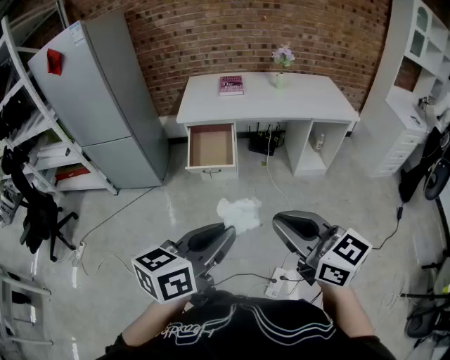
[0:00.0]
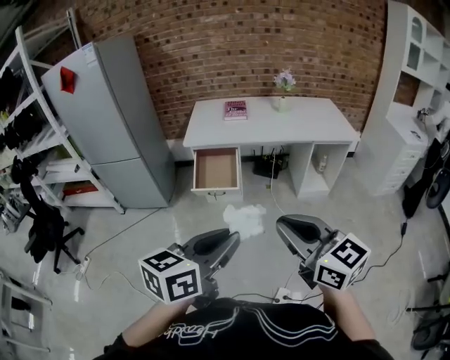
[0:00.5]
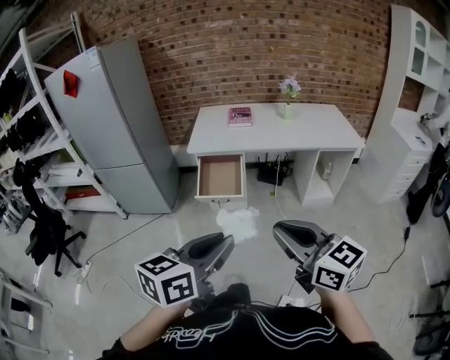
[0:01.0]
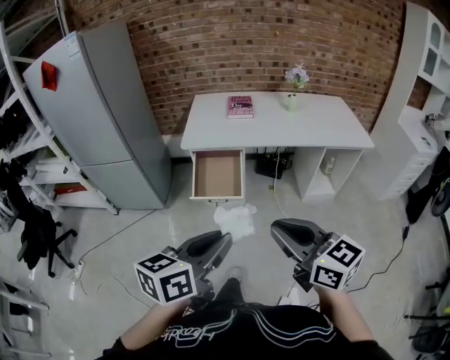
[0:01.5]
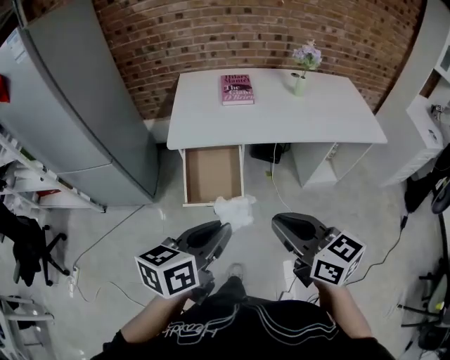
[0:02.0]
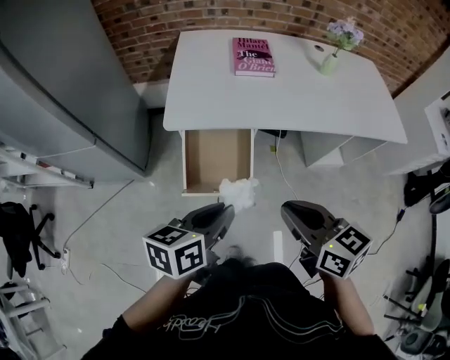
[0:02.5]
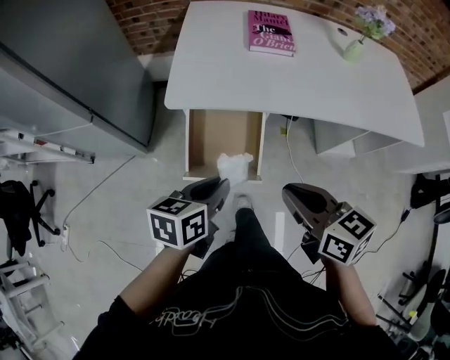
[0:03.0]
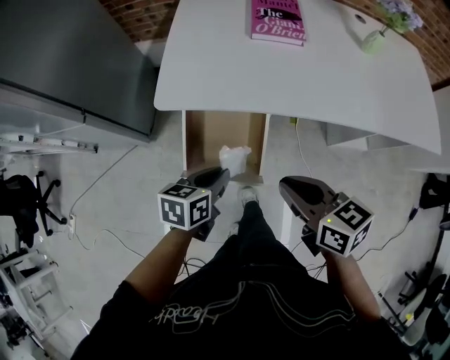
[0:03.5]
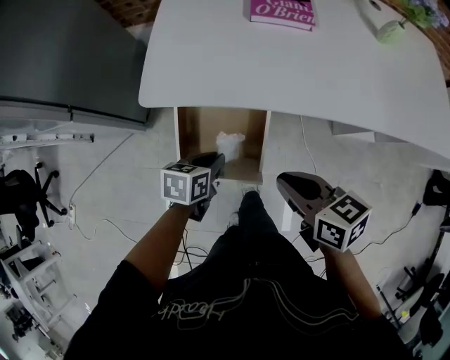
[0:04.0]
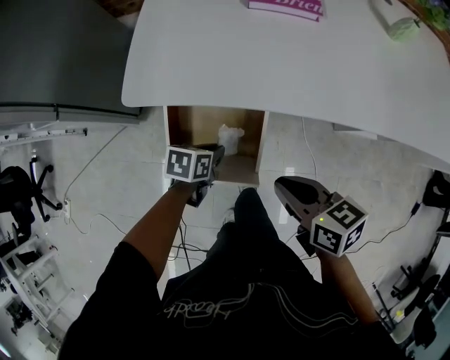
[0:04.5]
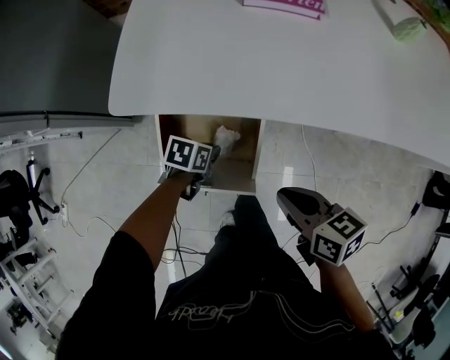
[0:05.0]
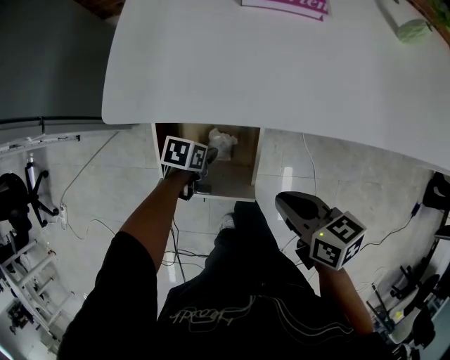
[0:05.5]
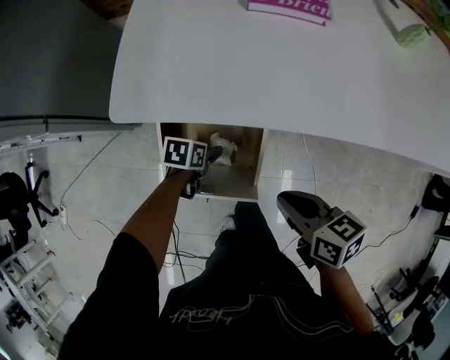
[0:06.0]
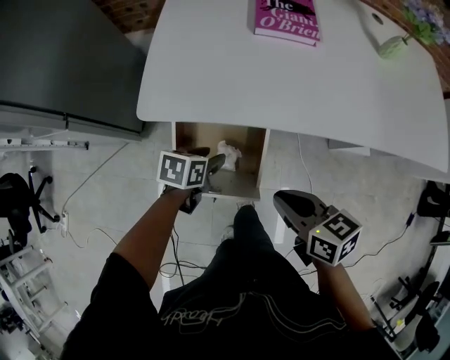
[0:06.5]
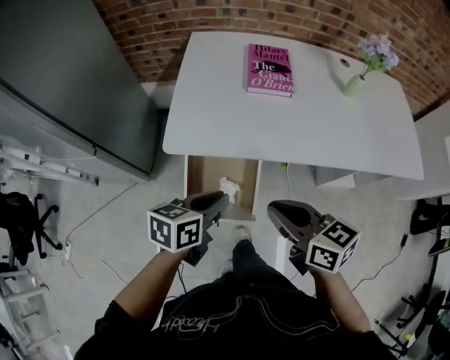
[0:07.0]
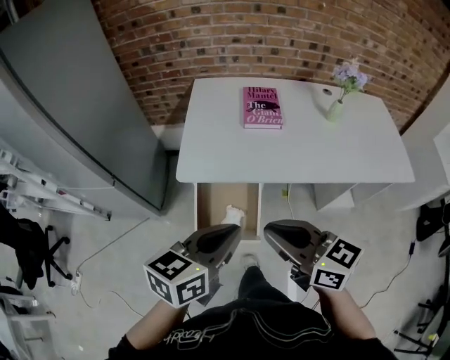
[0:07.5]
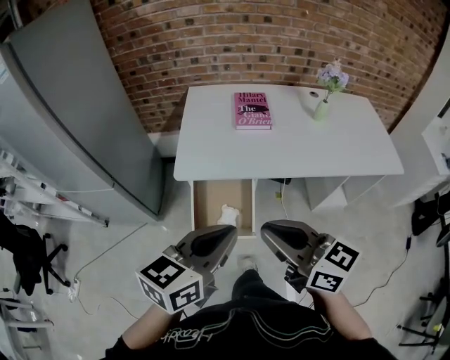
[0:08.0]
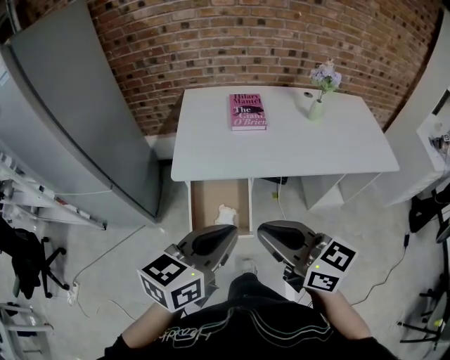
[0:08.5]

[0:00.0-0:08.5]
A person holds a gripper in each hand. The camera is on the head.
0:00.0 to 0:02.0: The grippers both shift forward by some 40 cm.
0:02.0 to 0:04.0: The left gripper goes approximately 50 cm downward and forward, and tips its fingers downward by some 30 degrees. Meanwhile the right gripper shifts about 40 cm forward and downward, and turns by approximately 30 degrees.
0:04.0 to 0:06.5: The right gripper reaches some 10 cm downward, then returns, while the left gripper reaches about 15 cm downward, then returns, and opens up.
0:06.5 to 0:08.5: Both grippers move upward and backward, about 40 cm. The right gripper turns by approximately 30 degrees, while the left gripper tips its fingers upward by approximately 40 degrees, and closes.

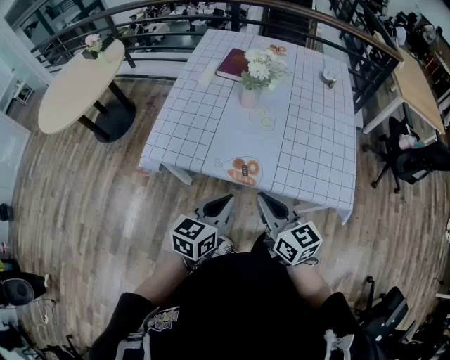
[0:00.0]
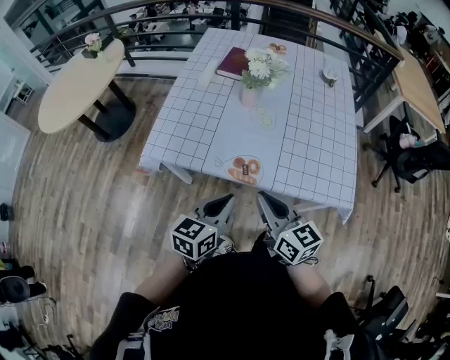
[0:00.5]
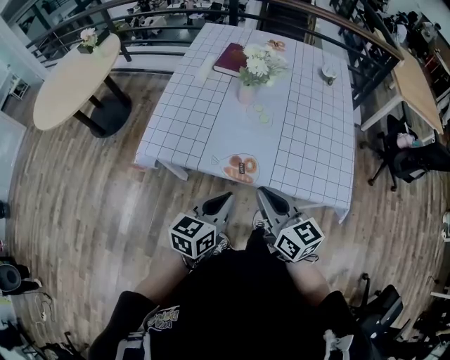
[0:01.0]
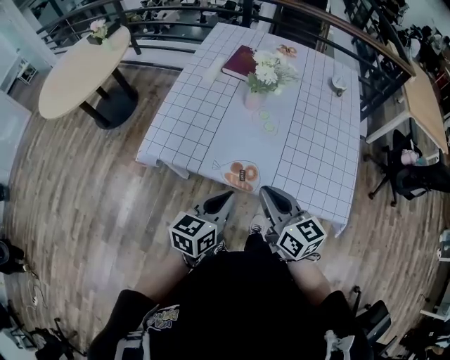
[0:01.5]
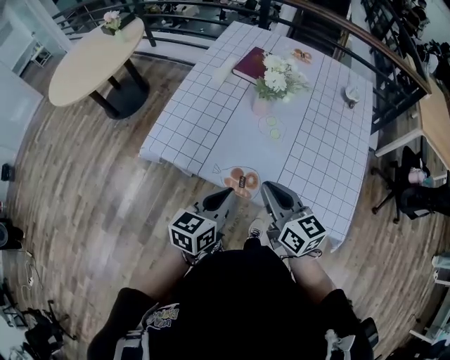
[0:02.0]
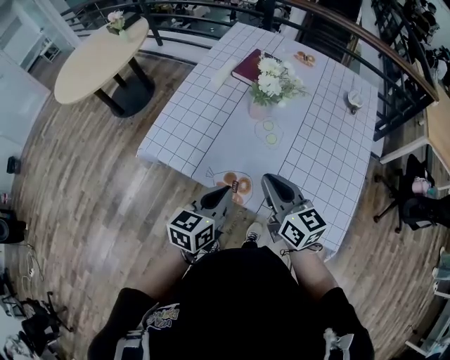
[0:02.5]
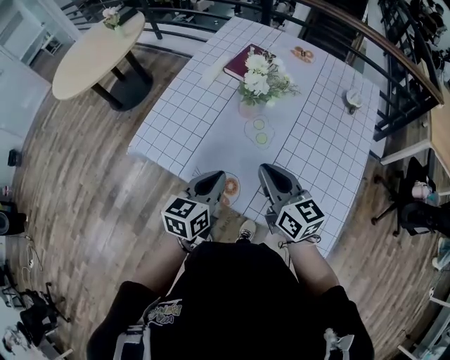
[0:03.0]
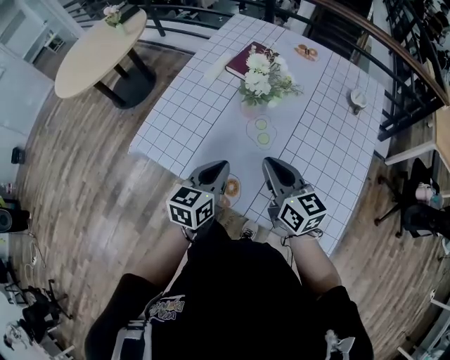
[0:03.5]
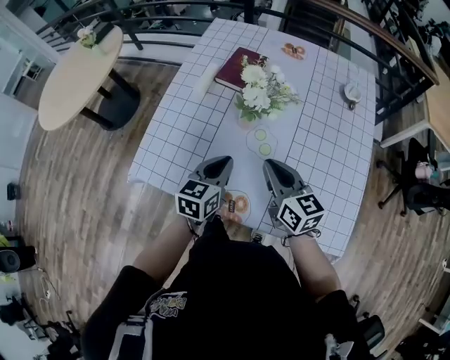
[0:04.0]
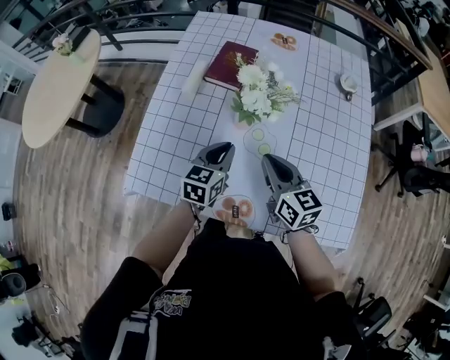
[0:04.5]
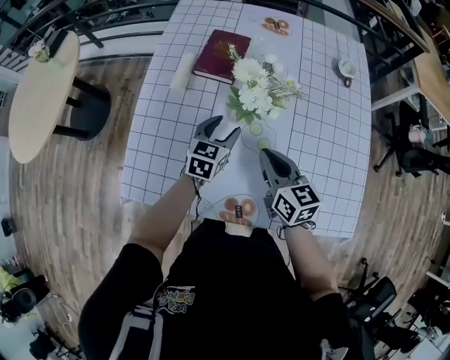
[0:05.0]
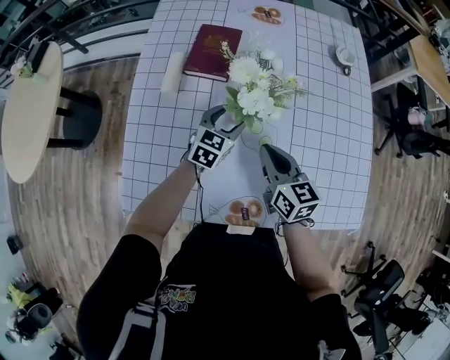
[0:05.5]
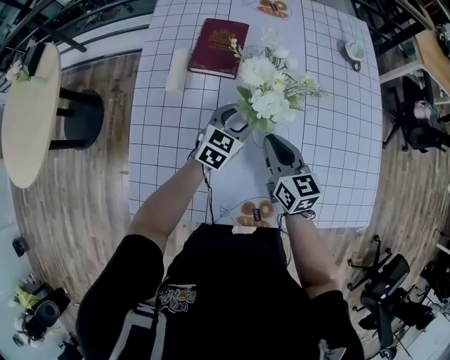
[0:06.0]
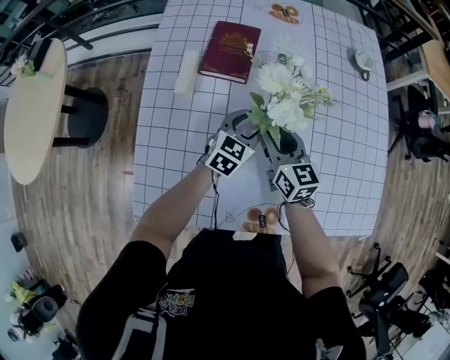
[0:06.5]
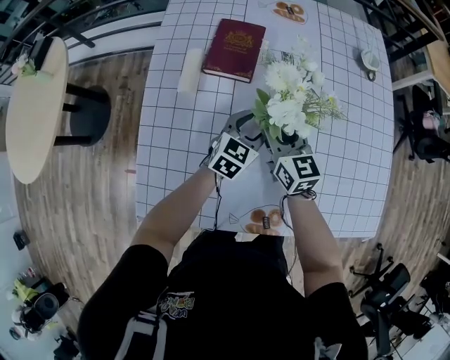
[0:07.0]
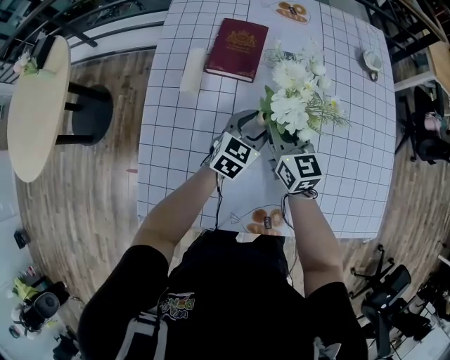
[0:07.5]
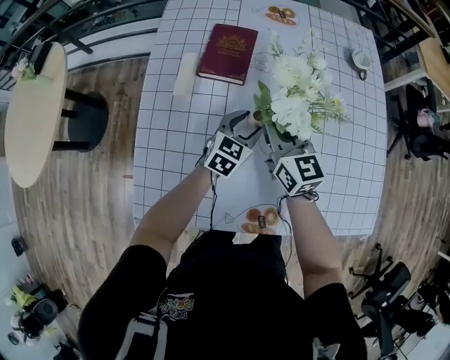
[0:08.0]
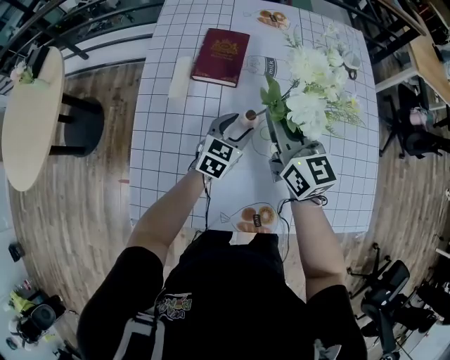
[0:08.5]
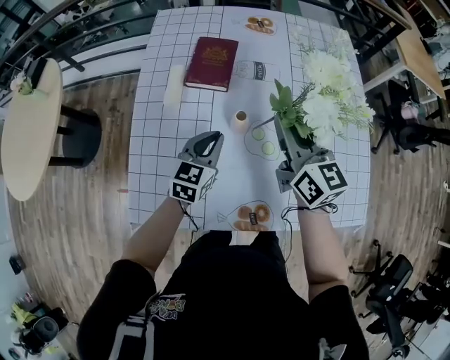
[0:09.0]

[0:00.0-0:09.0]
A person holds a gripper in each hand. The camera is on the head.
0:00.0 to 0:02.0: Both grippers travel together forward, roughly 10 cm.
0:02.0 to 0:04.5: Both grippers travel together forward, about 25 cm.
0:04.5 to 0:07.0: The right gripper is displaced forward, to the left and downward by roughly 20 cm, and opens up, while the left gripper is displaced forward and downward by approximately 15 cm, changes its angle by roughly 30 degrees, and opens up.
0:07.0 to 0:09.0: The left gripper goes roughly 10 cm upward, backward and to the left, and closes its fingers; the right gripper moves upward and to the right, roughly 15 cm, and closes.

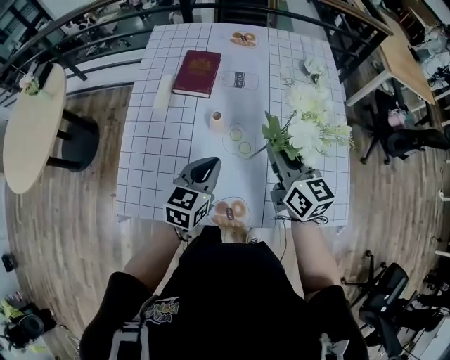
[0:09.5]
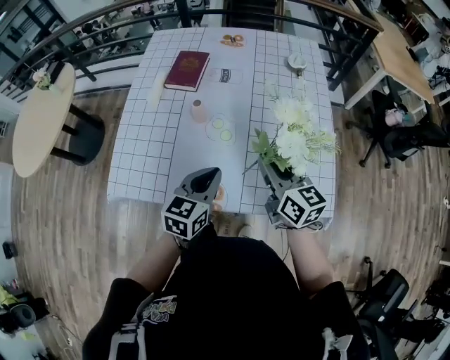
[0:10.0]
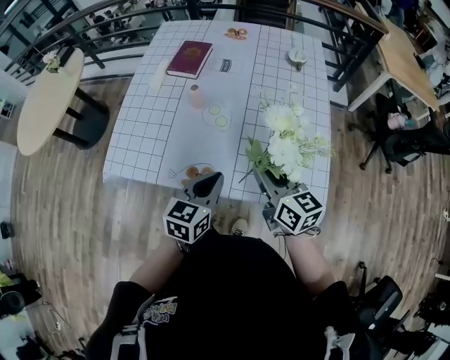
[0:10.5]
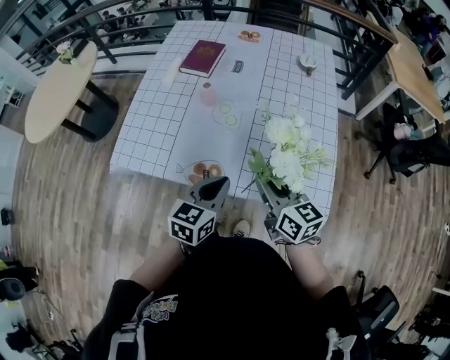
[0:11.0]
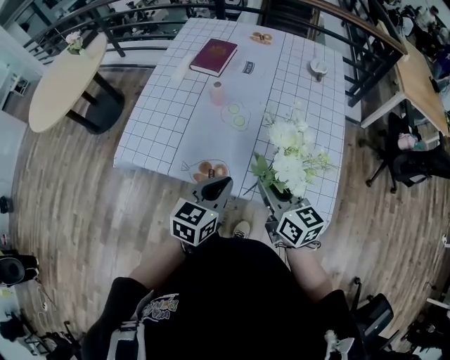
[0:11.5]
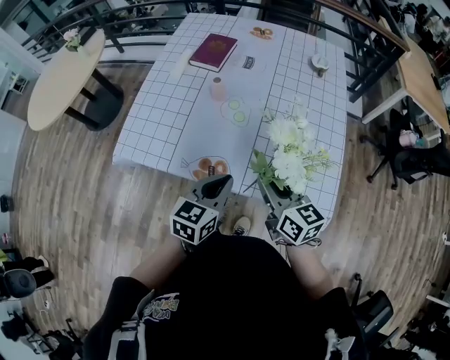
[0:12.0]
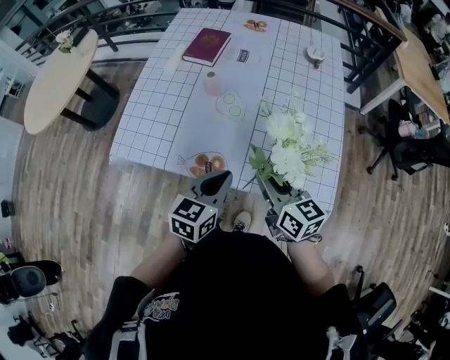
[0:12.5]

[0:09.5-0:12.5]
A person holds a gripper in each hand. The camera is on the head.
0:09.5 to 0:11.0: The left gripper is displaced backward and to the right by about 25 cm. Meanwhile the right gripper shifts approximately 20 cm backward.
0:11.0 to 0:12.5: The grippers move only a little.

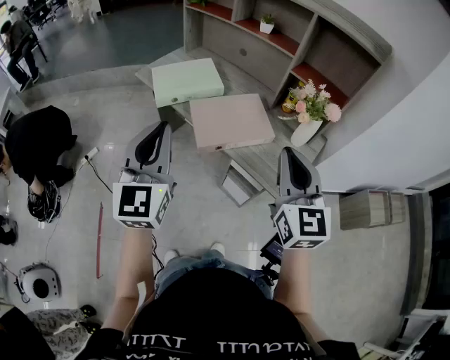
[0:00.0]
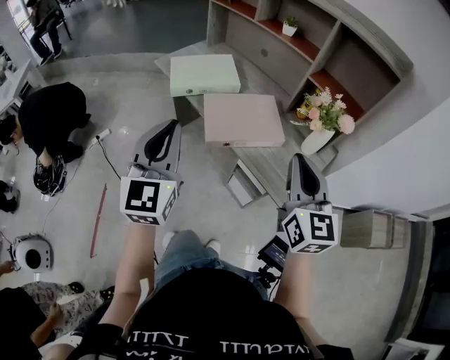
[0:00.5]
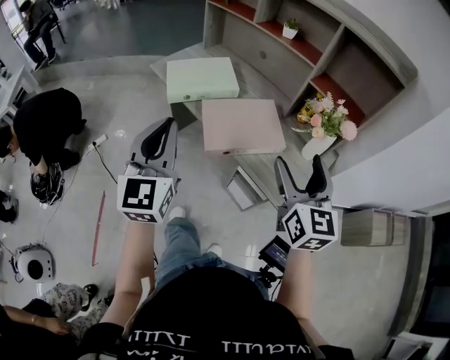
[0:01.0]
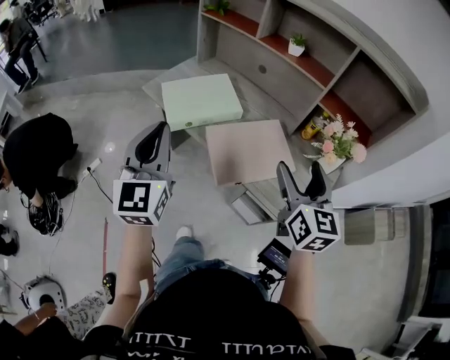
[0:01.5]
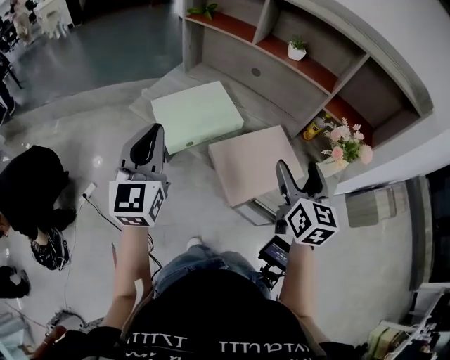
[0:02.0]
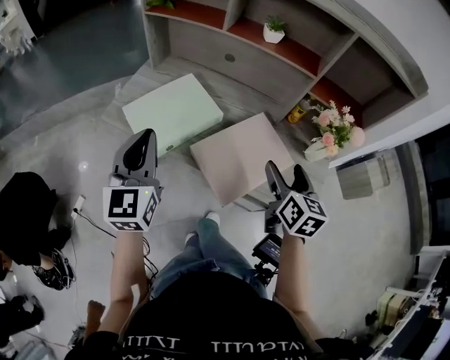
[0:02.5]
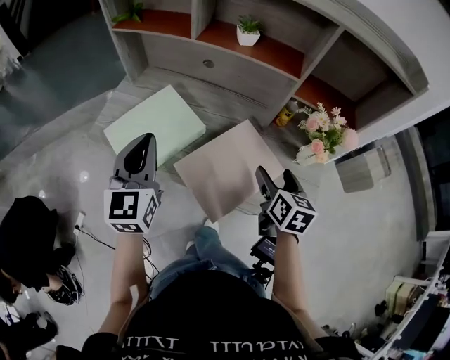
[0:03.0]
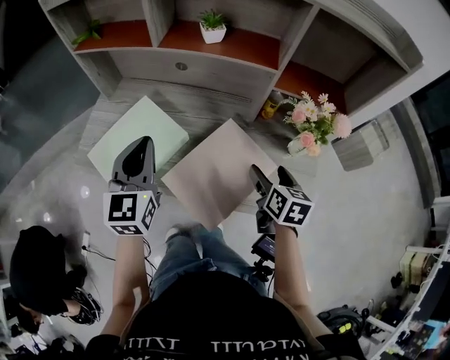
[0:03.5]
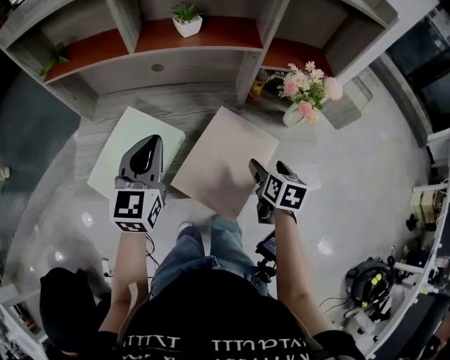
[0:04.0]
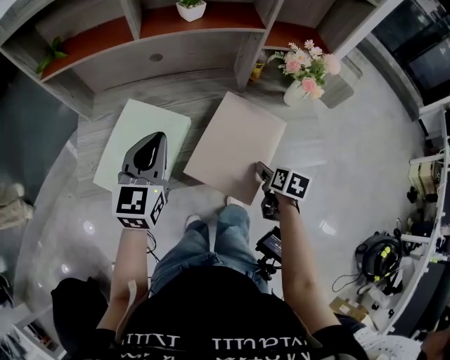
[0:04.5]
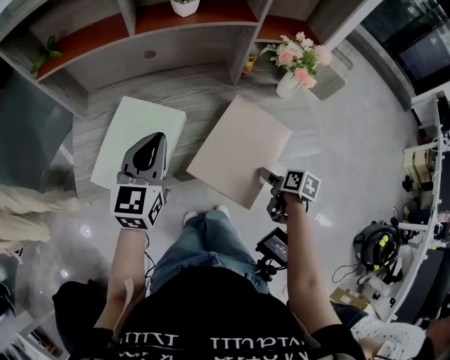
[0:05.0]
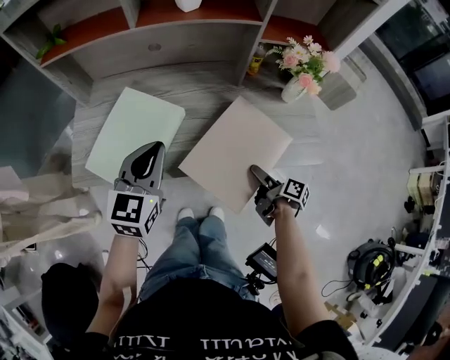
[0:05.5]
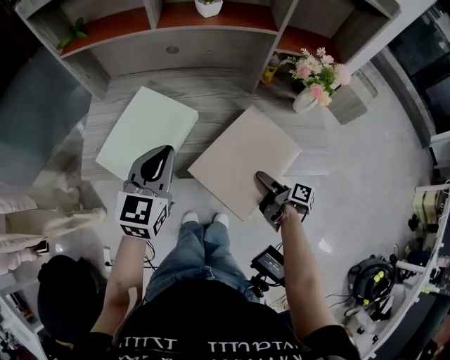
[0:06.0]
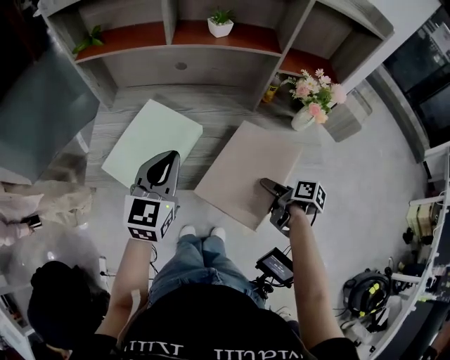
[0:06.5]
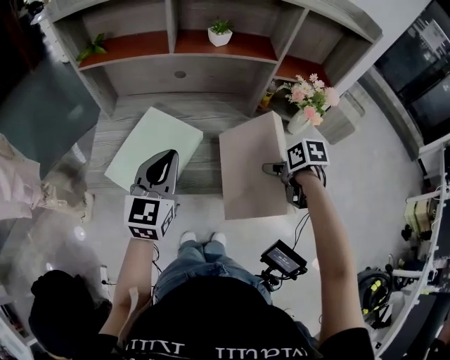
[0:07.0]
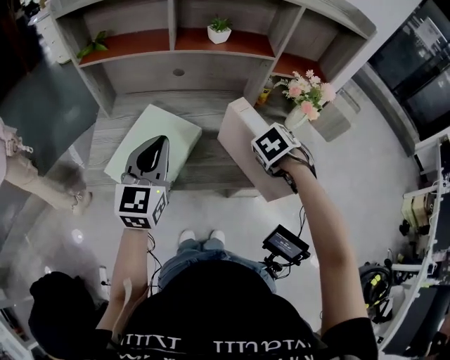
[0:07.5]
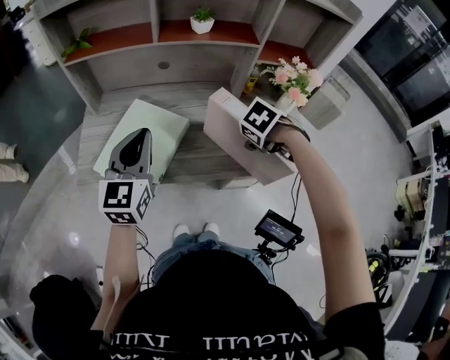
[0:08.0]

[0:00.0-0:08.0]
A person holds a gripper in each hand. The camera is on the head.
0:00.0 to 0:02.0: The right gripper moves forward, some 20 cm, swivels some 30 degrees, and opens. The left gripper is displaced forward and to the left by approximately 30 cm.
0:02.0 to 0:04.0: The right gripper is displaced downward by approximately 20 cm, and angles its fingers downward, by approximately 30 degrees. Meanwhile the left gripper moves about 25 cm, and turns by some 40 degrees.
0:04.0 to 0:06.0: The right gripper moves backward and downward, some 15 cm, and twists approximately 50 degrees clockwise, seen from behind, while the left gripper is displaced backward by some 10 cm.
0:06.0 to 0:08.0: The left gripper travels upward by about 5 cm, while the right gripper moves upward, about 15 cm, and tilts its fingers approximately 60 degrees downward.
